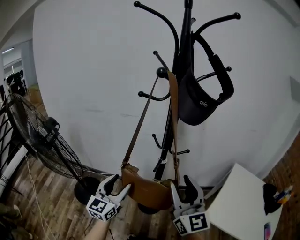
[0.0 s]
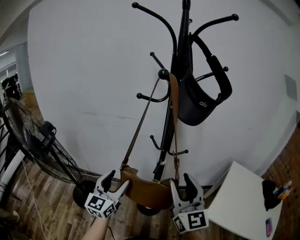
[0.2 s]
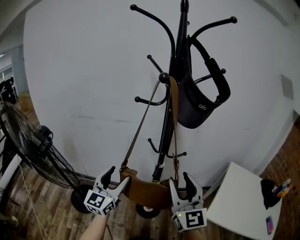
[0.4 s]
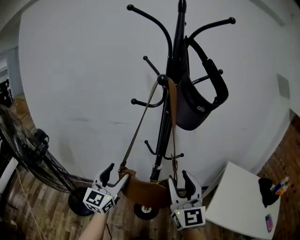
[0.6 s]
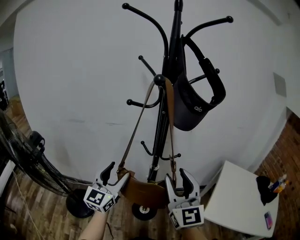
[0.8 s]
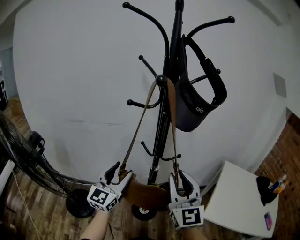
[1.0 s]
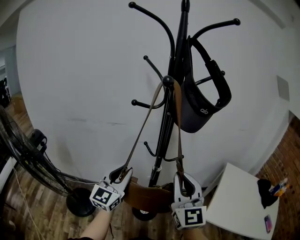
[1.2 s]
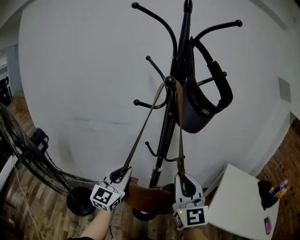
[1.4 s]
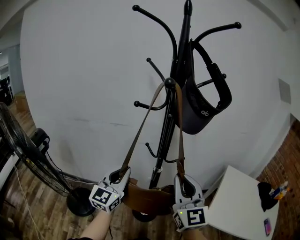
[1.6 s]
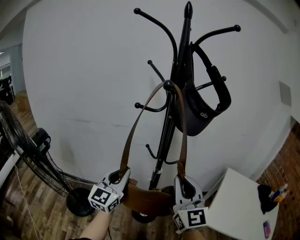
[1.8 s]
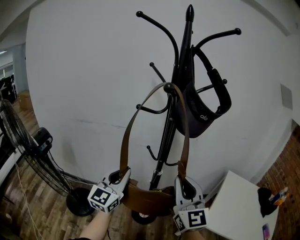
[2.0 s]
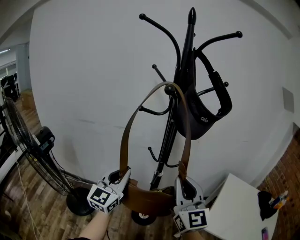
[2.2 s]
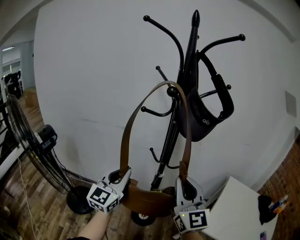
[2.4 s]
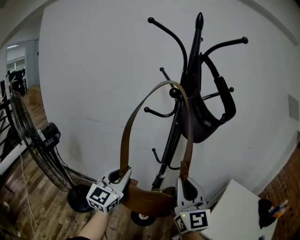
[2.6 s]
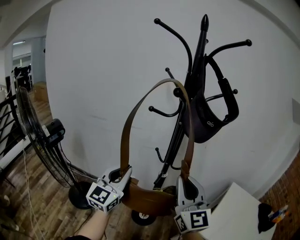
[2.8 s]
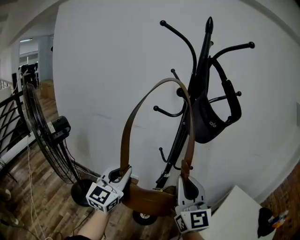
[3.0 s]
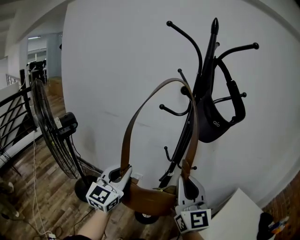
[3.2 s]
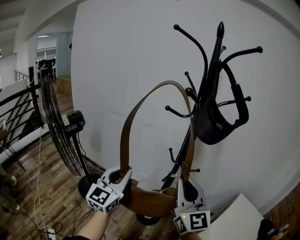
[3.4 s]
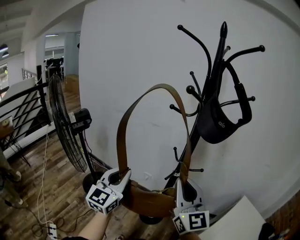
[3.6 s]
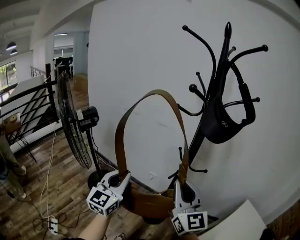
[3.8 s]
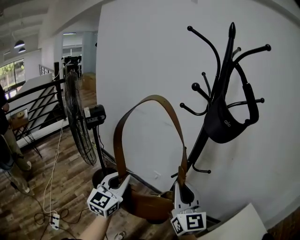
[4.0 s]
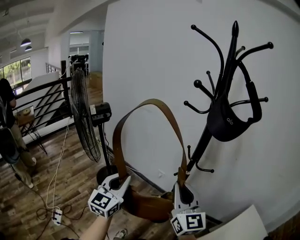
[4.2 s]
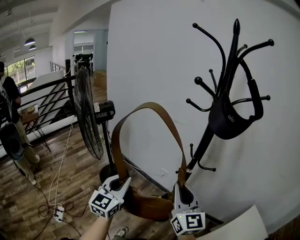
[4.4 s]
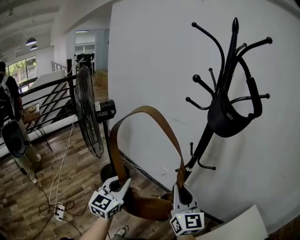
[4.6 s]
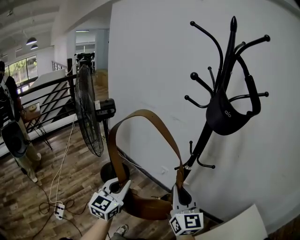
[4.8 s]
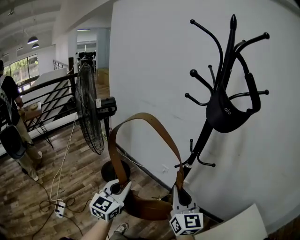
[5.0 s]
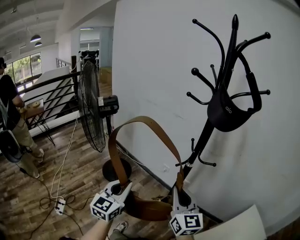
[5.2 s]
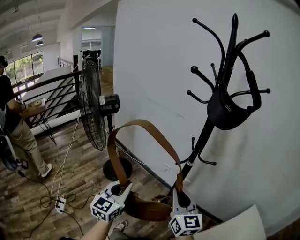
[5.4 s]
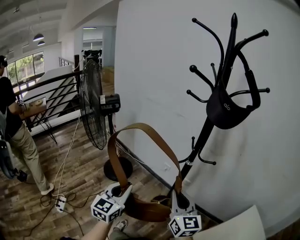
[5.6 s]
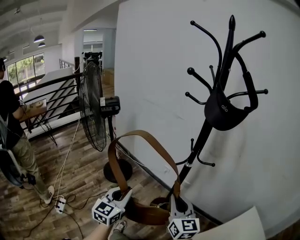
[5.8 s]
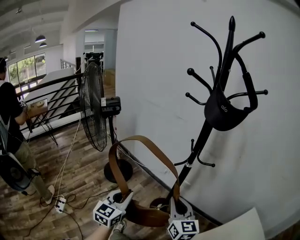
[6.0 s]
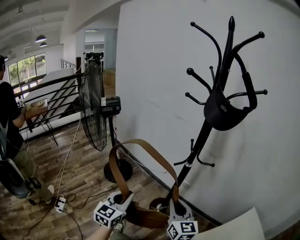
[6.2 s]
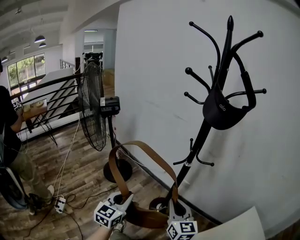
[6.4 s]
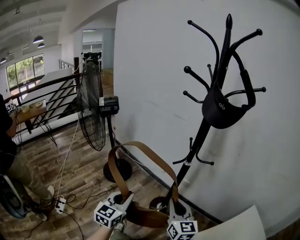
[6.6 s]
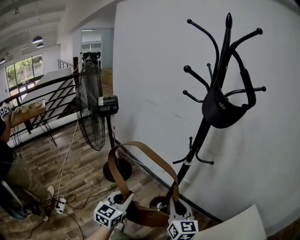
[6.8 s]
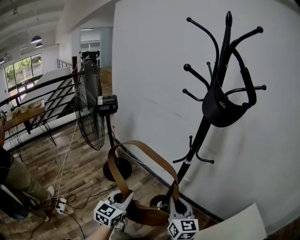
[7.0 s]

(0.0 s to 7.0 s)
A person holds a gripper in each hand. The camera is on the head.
0.0 s - 1.4 s: The left gripper travels forward and upward by approximately 10 cm, and closes up. Meanwhile the right gripper changes place by some 5 cm, and closes.
1.4 s - 2.8 s: The left gripper shifts by approximately 5 cm.
2.8 s - 4.2 s: The left gripper ends up approximately 15 cm from where it was, and turns by approximately 30 degrees; the right gripper is displaced downward by about 5 cm, and swivels roughly 30 degrees.
4.2 s - 5.6 s: The left gripper is displaced downward and backward by some 10 cm; the right gripper goes approximately 10 cm downward.
5.6 s - 7.0 s: The left gripper changes place by about 5 cm, while the right gripper is displaced downward by some 5 cm.

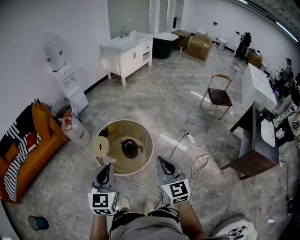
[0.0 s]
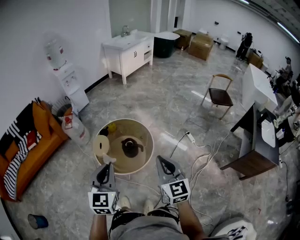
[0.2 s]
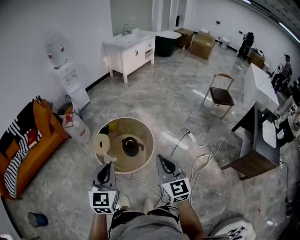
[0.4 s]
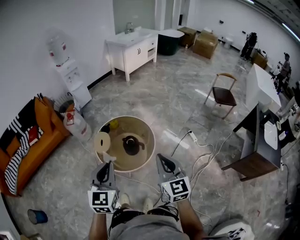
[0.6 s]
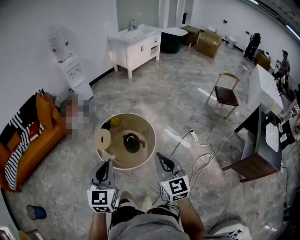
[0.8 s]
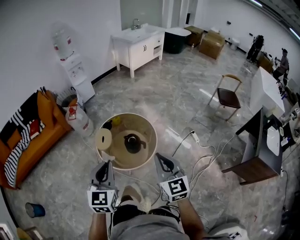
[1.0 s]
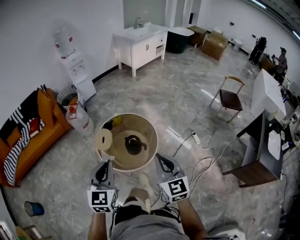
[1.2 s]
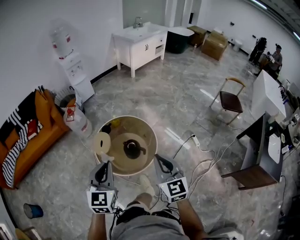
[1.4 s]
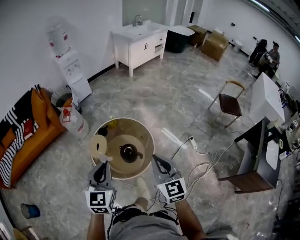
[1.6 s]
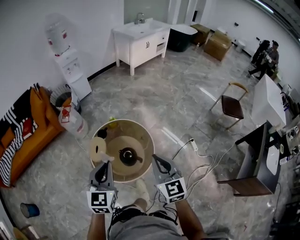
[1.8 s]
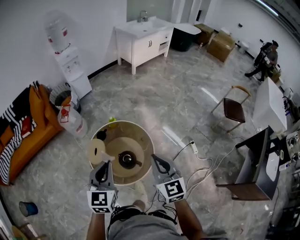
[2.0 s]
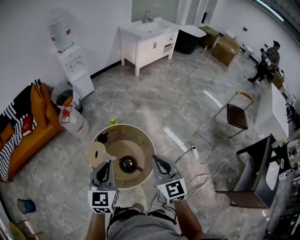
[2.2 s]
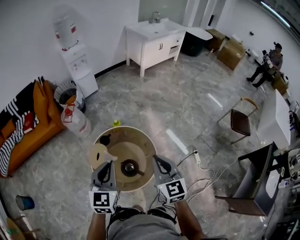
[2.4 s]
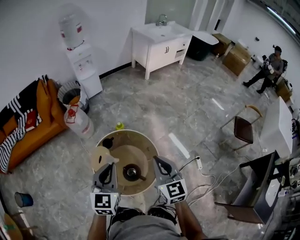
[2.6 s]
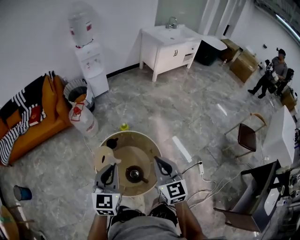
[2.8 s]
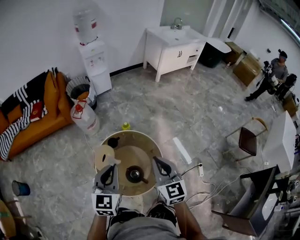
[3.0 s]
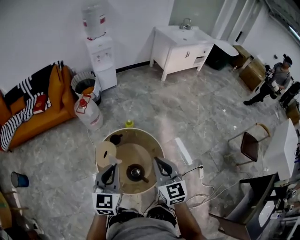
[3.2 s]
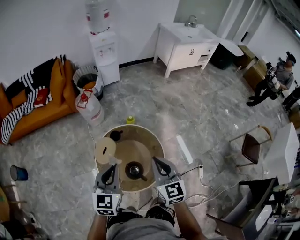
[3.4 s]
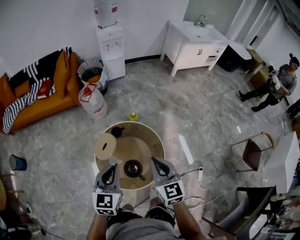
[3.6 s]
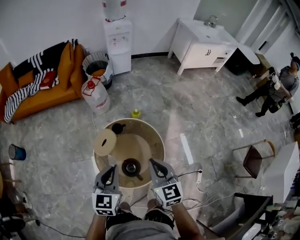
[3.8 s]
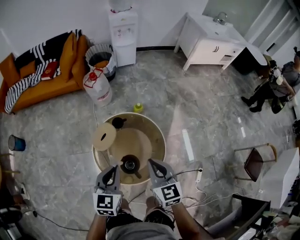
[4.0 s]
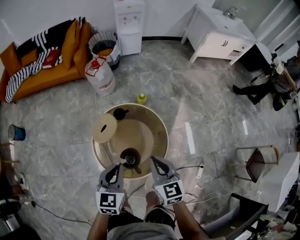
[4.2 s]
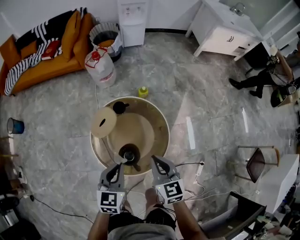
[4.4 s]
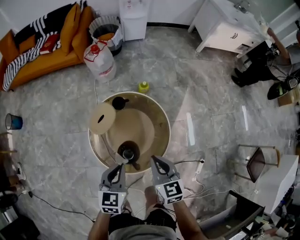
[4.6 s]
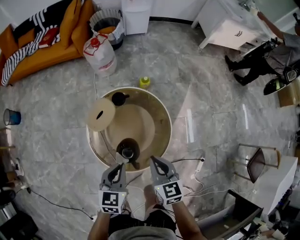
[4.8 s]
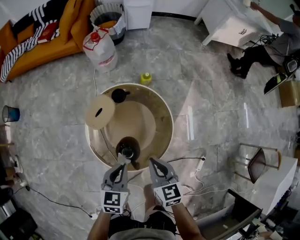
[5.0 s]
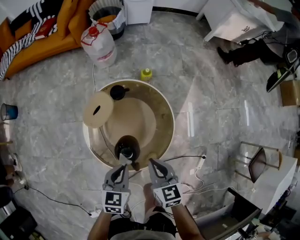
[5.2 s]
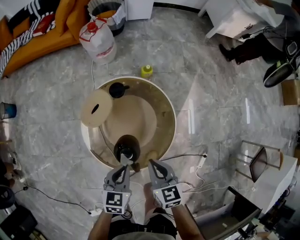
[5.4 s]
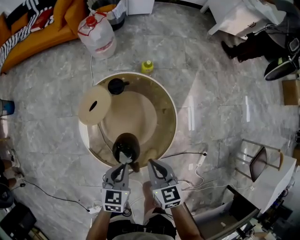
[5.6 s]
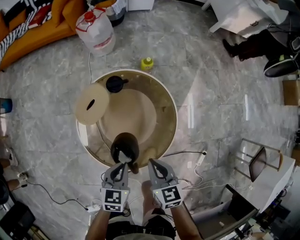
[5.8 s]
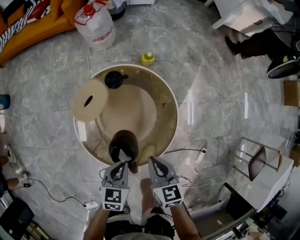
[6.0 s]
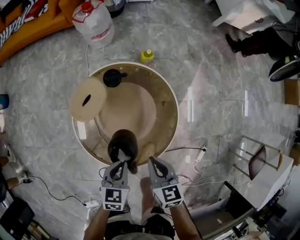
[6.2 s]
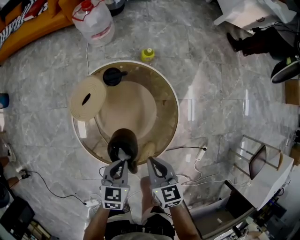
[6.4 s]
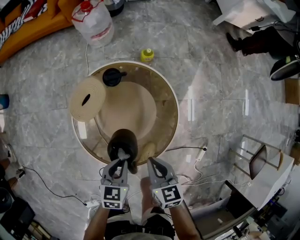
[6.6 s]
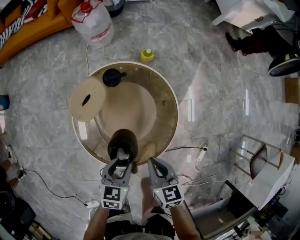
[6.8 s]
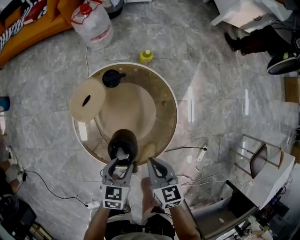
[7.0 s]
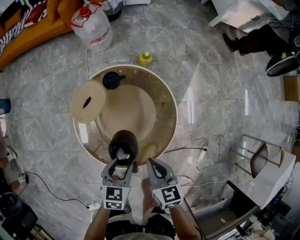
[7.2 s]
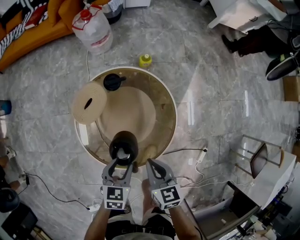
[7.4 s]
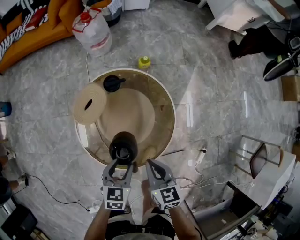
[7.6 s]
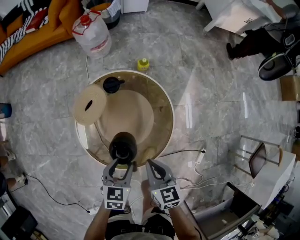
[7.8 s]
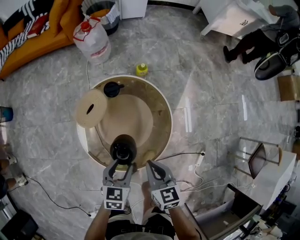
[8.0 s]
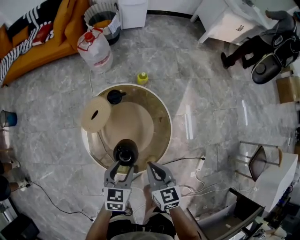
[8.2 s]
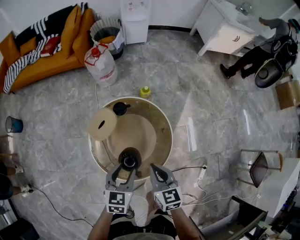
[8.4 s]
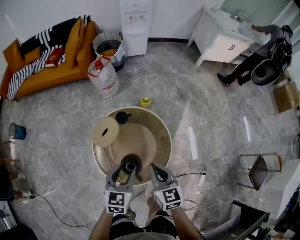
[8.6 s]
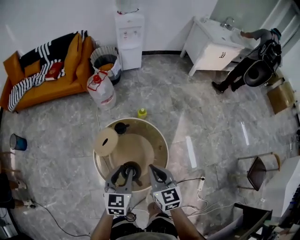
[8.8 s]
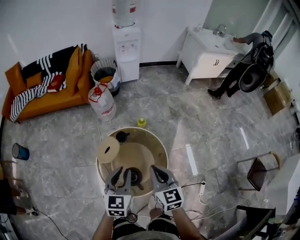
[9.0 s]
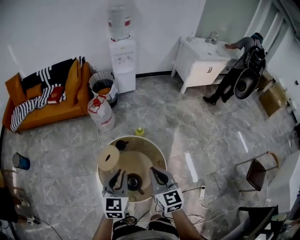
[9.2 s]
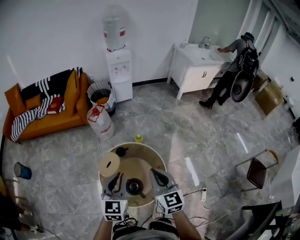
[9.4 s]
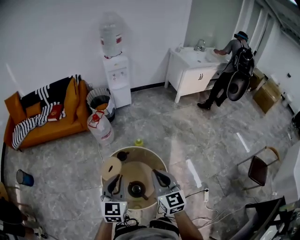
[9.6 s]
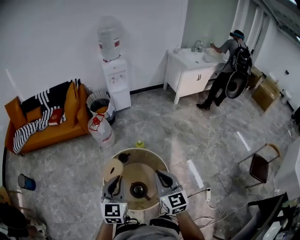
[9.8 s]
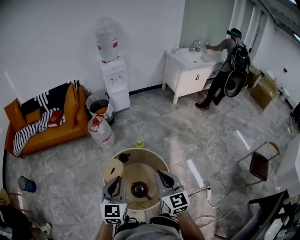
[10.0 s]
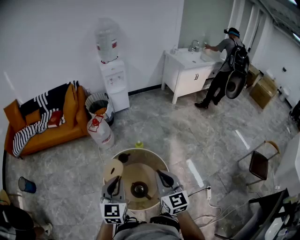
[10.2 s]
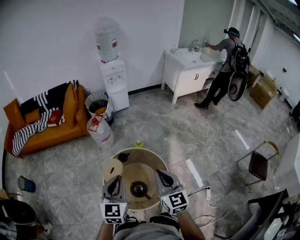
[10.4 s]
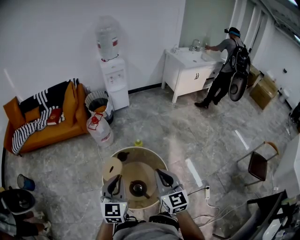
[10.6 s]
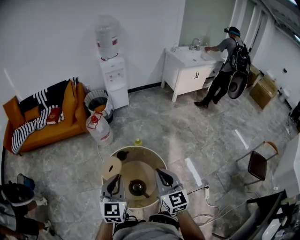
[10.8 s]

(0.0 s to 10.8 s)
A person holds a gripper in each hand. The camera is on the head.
0.0 s - 1.6 s: The grippers both shift forward by some 15 cm.
1.6 s - 3.0 s: The two grippers go some 25 cm forward.
3.0 s - 4.6 s: The grippers both shift downward by approximately 25 cm. The left gripper rotates roughly 30 degrees. The right gripper swivels about 30 degrees.
4.6 s - 6.2 s: The two grippers go approximately 20 cm downward.
6.2 s - 7.8 s: The left gripper opens its fingers.
7.8 s - 9.2 s: The two grippers go about 35 cm upward. The right gripper rotates roughly 30 degrees, while the left gripper swivels some 30 degrees, and closes.
9.2 s - 10.8 s: The two grippers go about 5 cm upward.

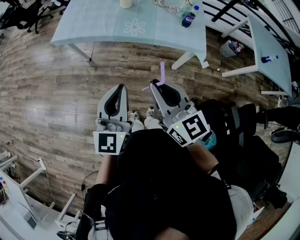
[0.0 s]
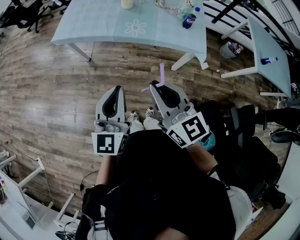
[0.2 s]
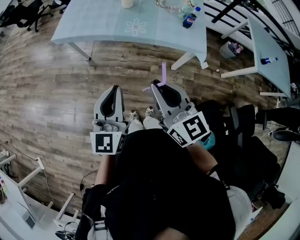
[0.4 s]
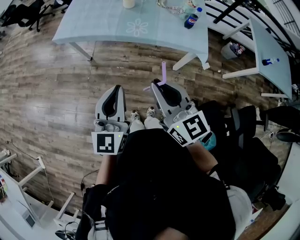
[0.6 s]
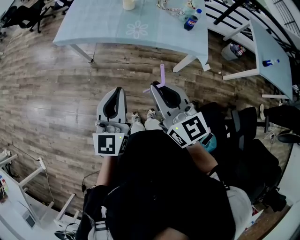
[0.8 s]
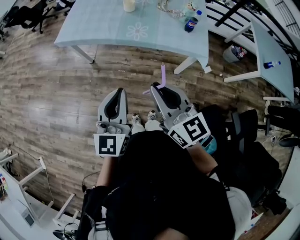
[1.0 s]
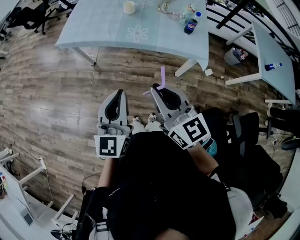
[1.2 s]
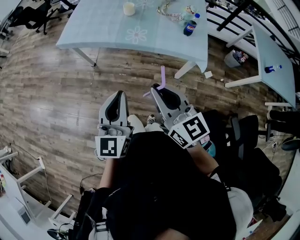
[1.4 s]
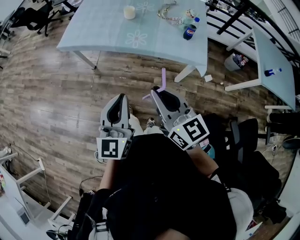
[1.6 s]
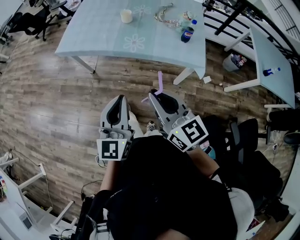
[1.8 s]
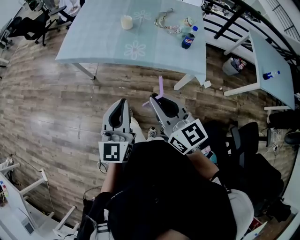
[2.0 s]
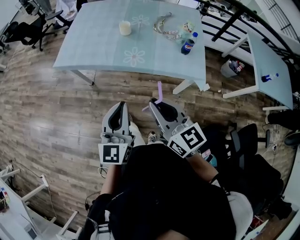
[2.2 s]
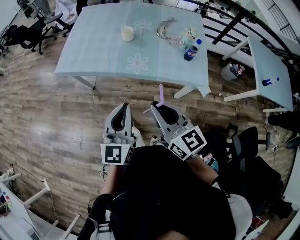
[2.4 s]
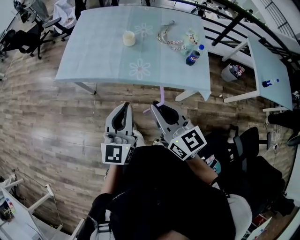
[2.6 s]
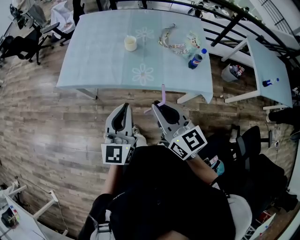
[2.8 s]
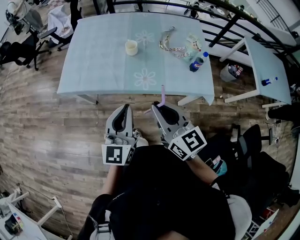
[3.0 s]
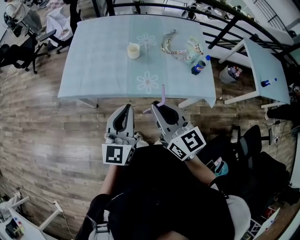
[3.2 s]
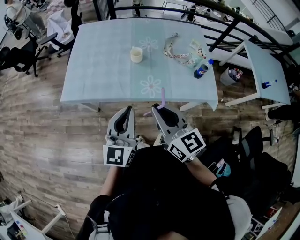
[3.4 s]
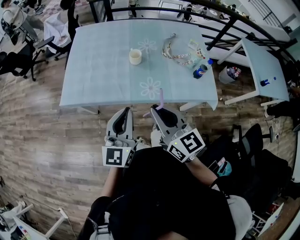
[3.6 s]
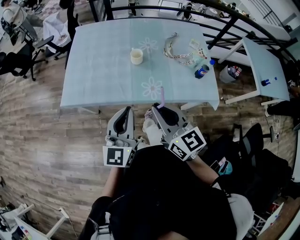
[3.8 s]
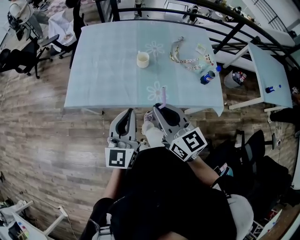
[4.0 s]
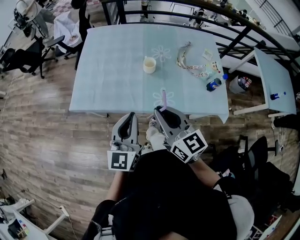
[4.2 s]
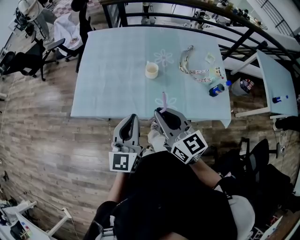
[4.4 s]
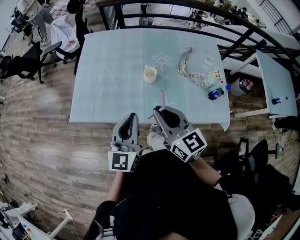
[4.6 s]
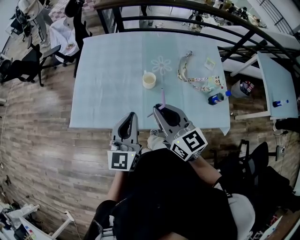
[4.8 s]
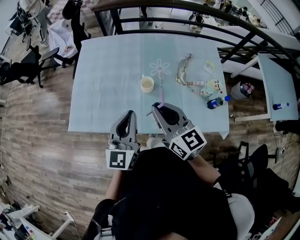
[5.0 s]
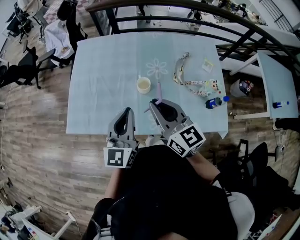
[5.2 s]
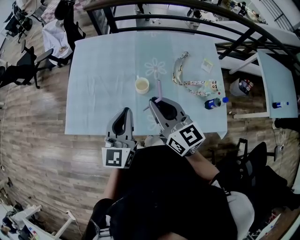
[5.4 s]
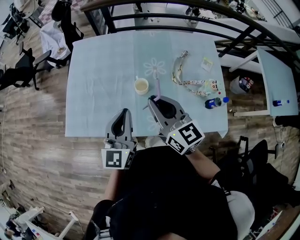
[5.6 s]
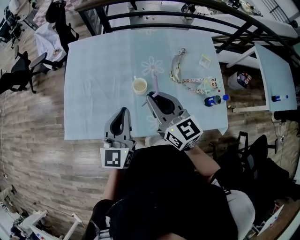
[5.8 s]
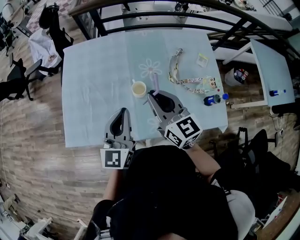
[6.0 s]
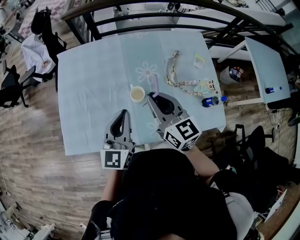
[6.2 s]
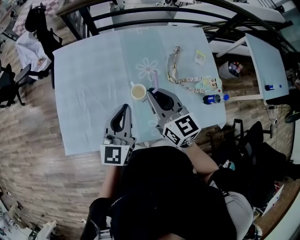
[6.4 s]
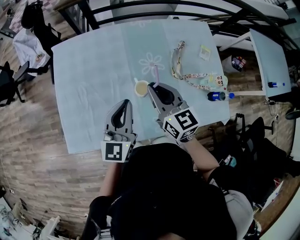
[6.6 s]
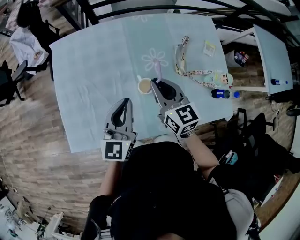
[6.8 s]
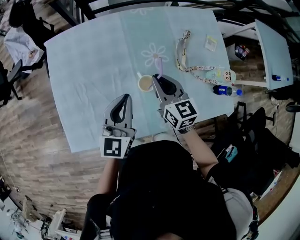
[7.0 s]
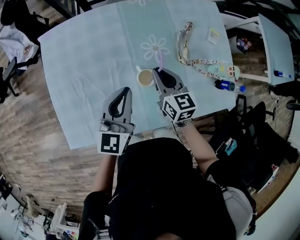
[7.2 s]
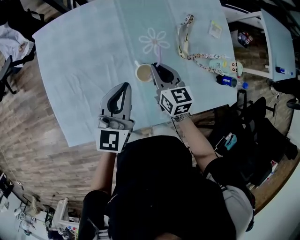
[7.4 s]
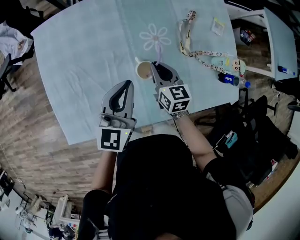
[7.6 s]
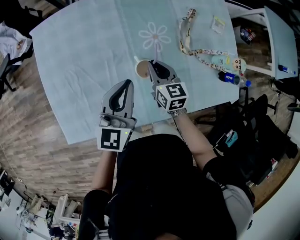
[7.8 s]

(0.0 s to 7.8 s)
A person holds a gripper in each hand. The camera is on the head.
0.0 s - 1.6 s: There are only small adjustments of the grippers.
1.6 s - 3.2 s: The left gripper moves forward, approximately 25 cm; the right gripper goes some 25 cm forward and to the left.
3.2 s - 4.6 s: The grippers both shift forward by approximately 20 cm.
4.6 s - 6.2 s: The two grippers go about 20 cm forward.
6.2 s - 7.8 s: The left gripper goes approximately 15 cm forward and downward. Meanwhile the right gripper is displaced downward and forward by approximately 25 cm, and rotates approximately 30 degrees.
